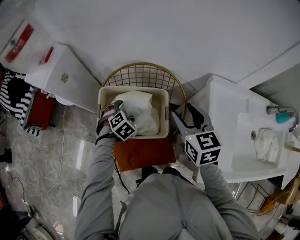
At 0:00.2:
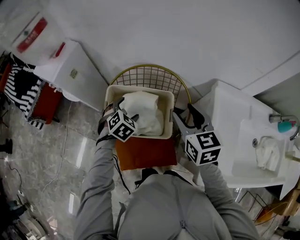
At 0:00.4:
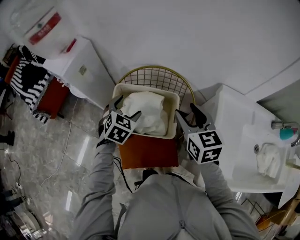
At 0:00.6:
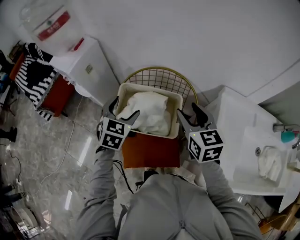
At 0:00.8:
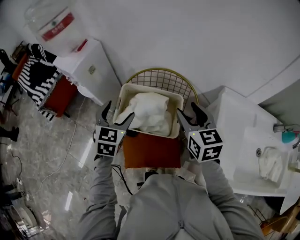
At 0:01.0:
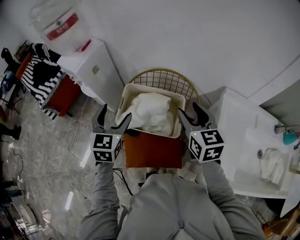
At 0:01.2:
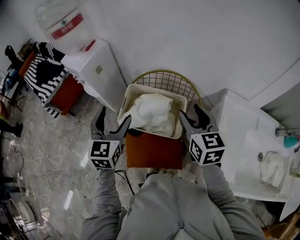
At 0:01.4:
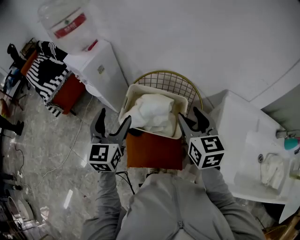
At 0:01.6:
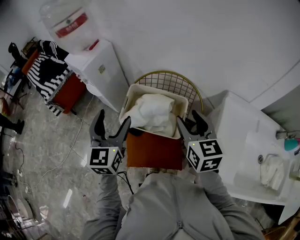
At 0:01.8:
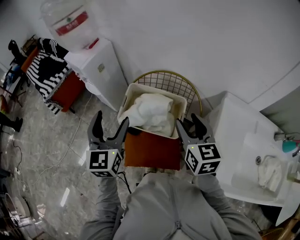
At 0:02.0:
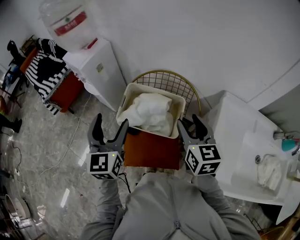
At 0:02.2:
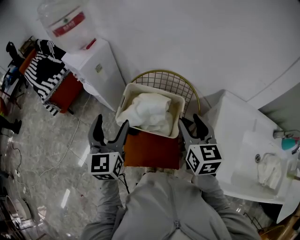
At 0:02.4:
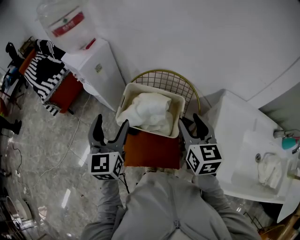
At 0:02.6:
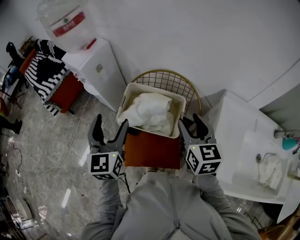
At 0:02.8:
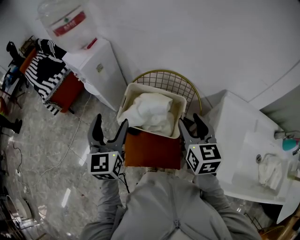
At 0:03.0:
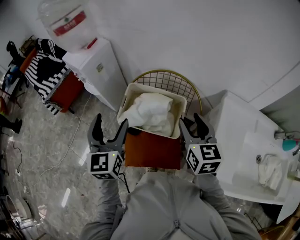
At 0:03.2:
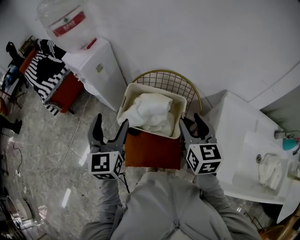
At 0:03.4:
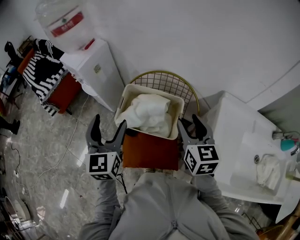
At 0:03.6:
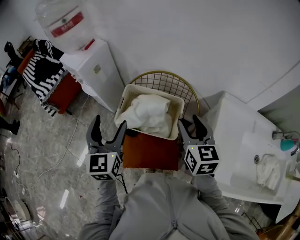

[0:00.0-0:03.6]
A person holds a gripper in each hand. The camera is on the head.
0:00.0 to 0:01.8: The left gripper heads upward, backward and to the left, covering roughly 35 cm, and angles its fingers upward, by roughly 60 degrees, while the right gripper heads backward and to the left, covering roughly 10 cm.
0:01.8 to 0:03.6: The grippers make only small movements.

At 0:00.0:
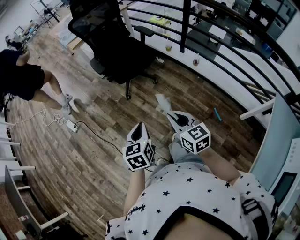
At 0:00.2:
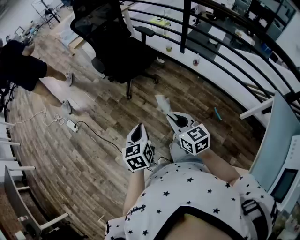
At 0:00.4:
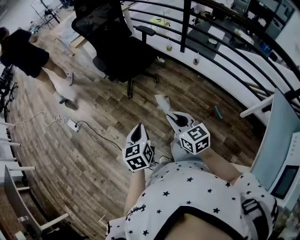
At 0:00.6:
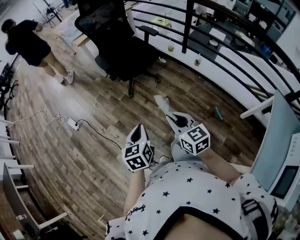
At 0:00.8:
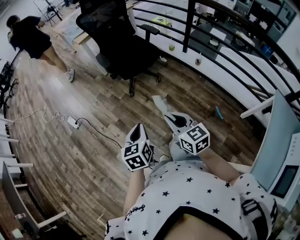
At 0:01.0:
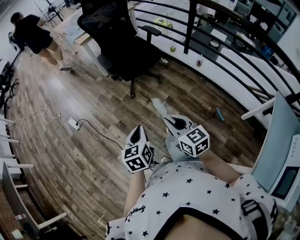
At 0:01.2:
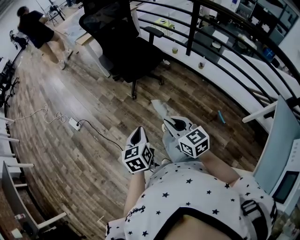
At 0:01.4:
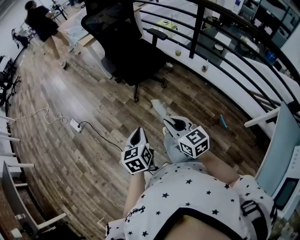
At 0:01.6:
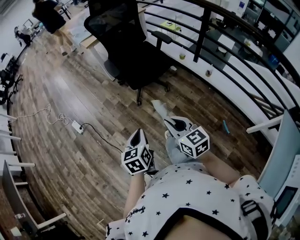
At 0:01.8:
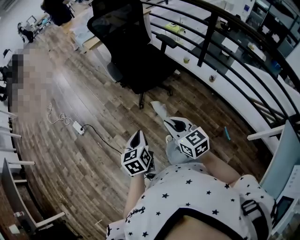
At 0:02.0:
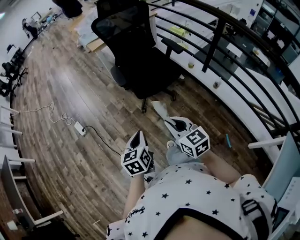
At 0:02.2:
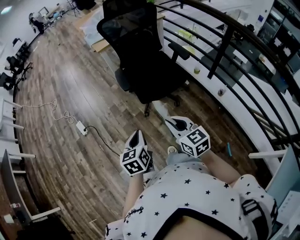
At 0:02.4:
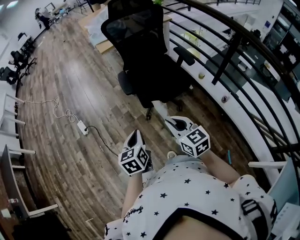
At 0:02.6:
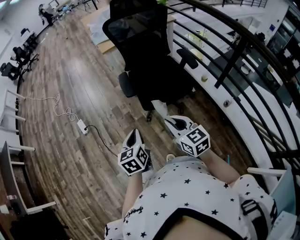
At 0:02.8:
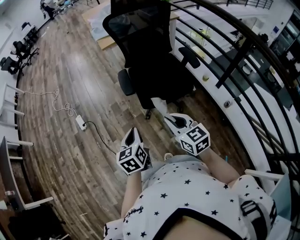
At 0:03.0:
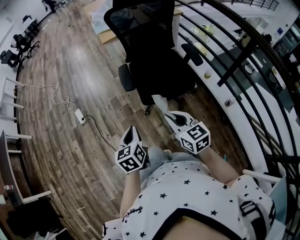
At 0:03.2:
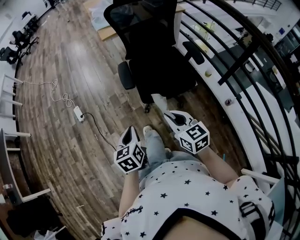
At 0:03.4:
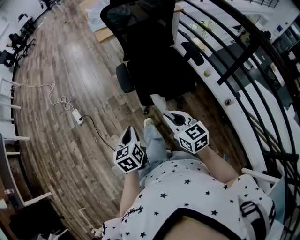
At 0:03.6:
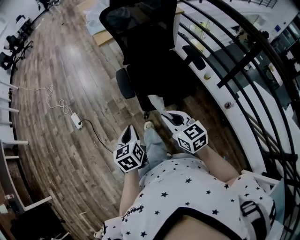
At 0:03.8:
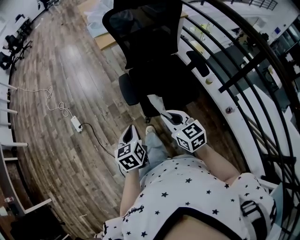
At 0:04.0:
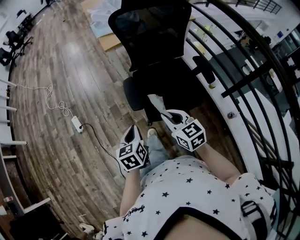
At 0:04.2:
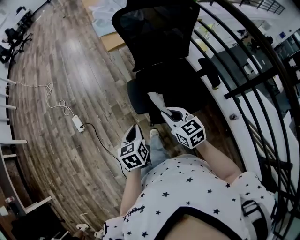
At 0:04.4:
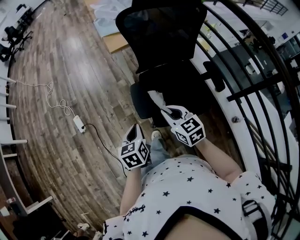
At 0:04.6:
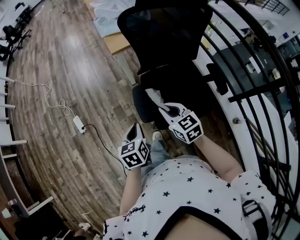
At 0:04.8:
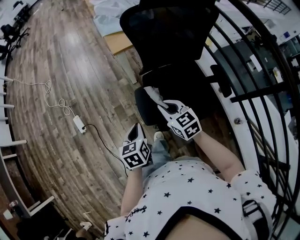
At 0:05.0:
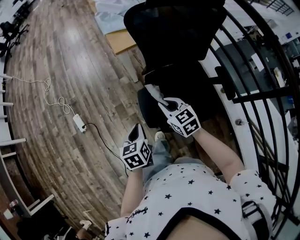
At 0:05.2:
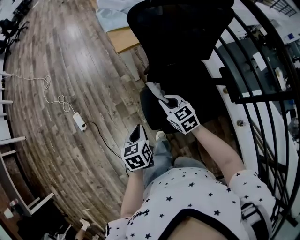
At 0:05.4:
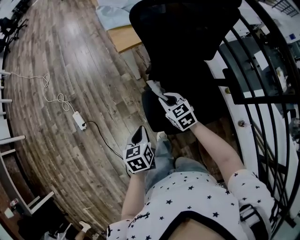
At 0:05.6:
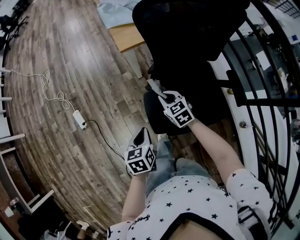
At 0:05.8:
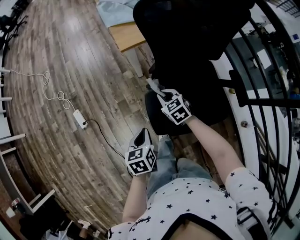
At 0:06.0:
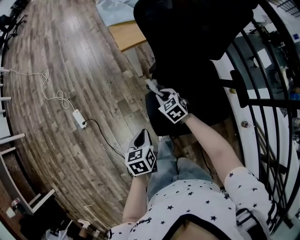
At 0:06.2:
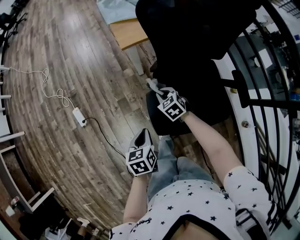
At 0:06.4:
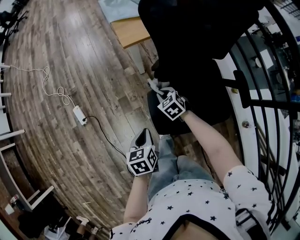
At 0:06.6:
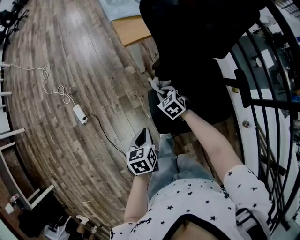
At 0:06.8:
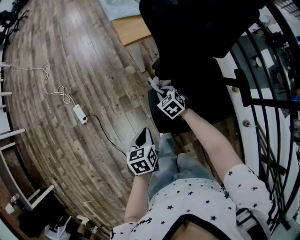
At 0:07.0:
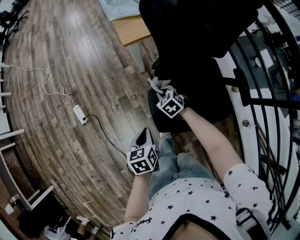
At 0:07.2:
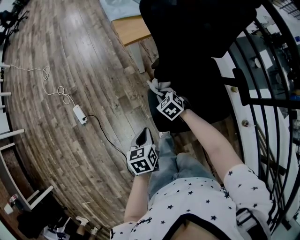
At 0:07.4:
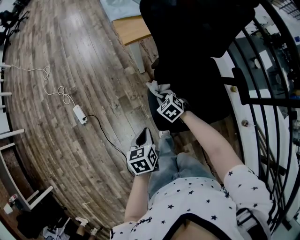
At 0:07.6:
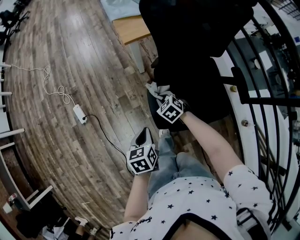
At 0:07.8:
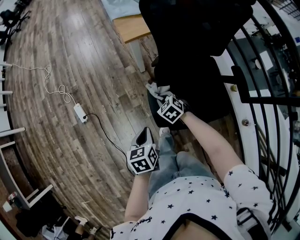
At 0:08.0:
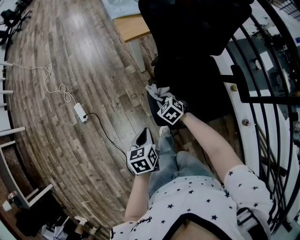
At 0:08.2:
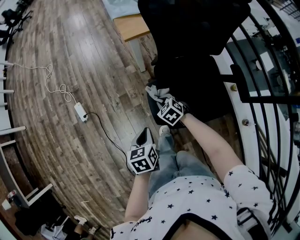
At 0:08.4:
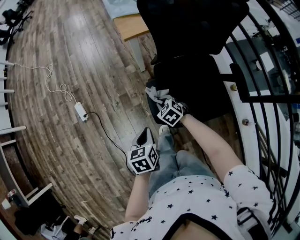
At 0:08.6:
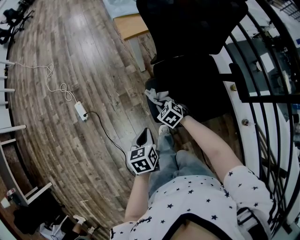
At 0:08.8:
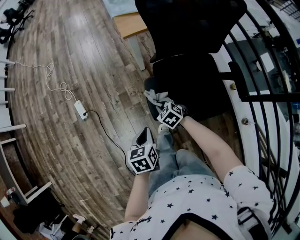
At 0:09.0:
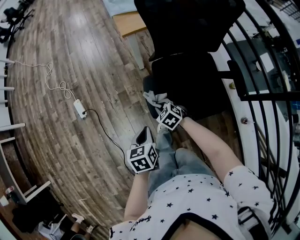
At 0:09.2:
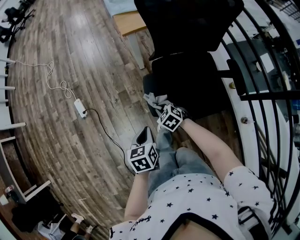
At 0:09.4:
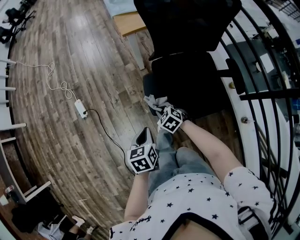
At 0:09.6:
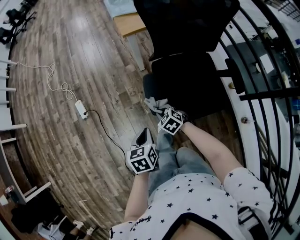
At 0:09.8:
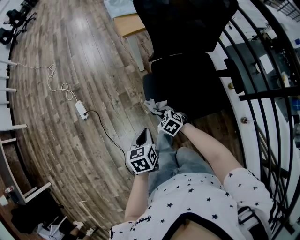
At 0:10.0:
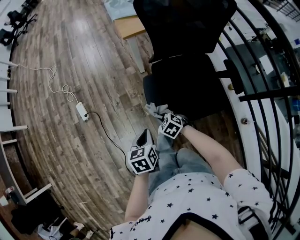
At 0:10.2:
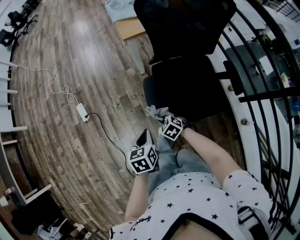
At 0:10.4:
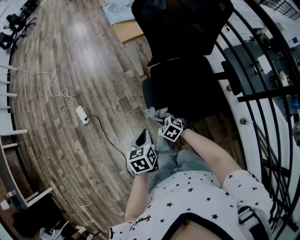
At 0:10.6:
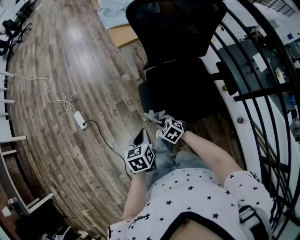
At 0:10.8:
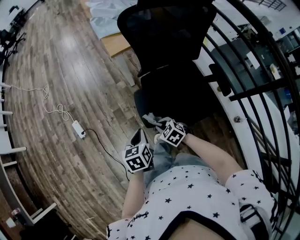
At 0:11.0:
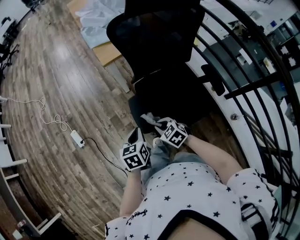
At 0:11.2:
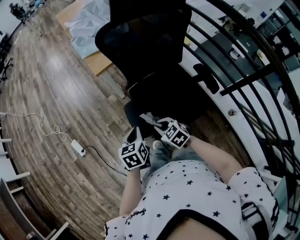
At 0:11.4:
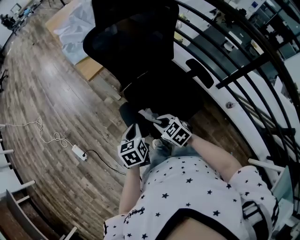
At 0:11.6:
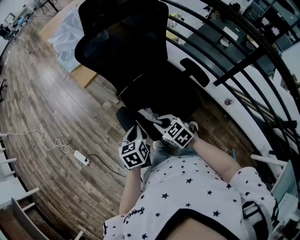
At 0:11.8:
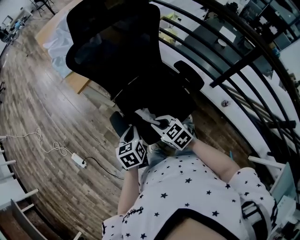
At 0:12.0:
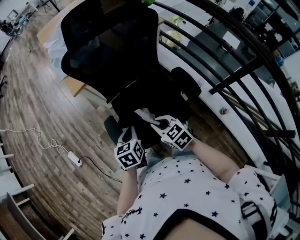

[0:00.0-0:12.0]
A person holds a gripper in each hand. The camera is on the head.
0:00.0 to 0:01.6: Both grippers travel together to the left and forward, some 10 cm.
0:01.6 to 0:03.0: Both grippers travel together forward, about 20 cm. The left gripper swivels roughly 20 degrees.
0:03.0 to 0:04.4: Both grippers travel together forward, about 25 cm.
0:04.4 to 0:06.0: The left gripper moves downward and forward, some 15 cm. Meanwhile the right gripper heads forward and downward, covering some 30 cm, and turns by about 20 degrees.
0:06.0 to 0:07.6: The right gripper changes place by some 5 cm.
0:07.6 to 0:09.0: The left gripper goes some 5 cm backward. The right gripper heads backward, covering roughly 10 cm.
0:09.0 to 0:10.4: The right gripper is displaced backward by about 5 cm.
0:10.4 to 0:12.0: The right gripper is displaced to the right and upward by approximately 30 cm, and swivels some 40 degrees. The left gripper is displaced to the right and forward by approximately 25 cm.

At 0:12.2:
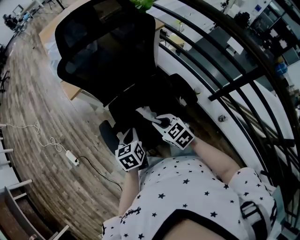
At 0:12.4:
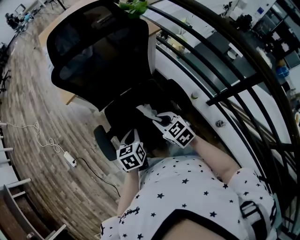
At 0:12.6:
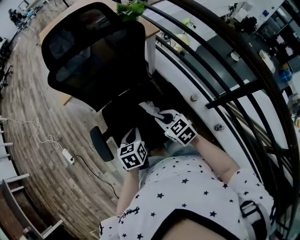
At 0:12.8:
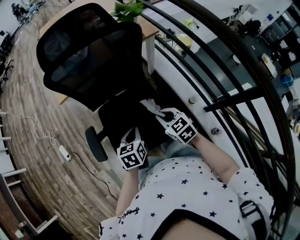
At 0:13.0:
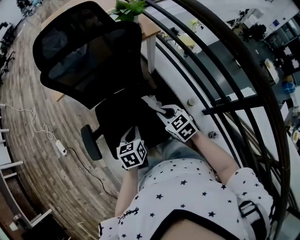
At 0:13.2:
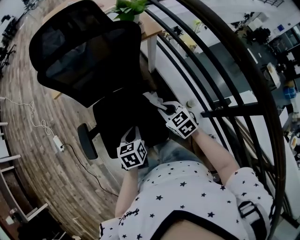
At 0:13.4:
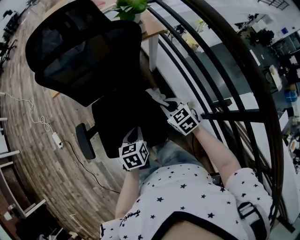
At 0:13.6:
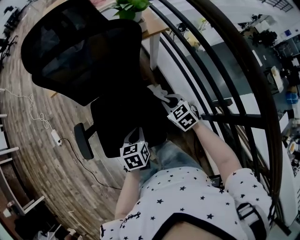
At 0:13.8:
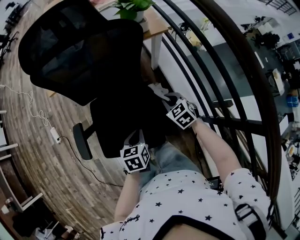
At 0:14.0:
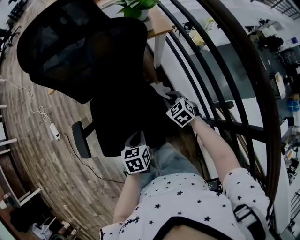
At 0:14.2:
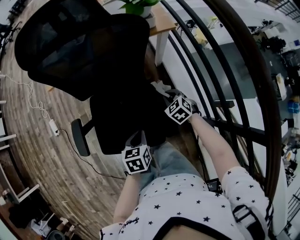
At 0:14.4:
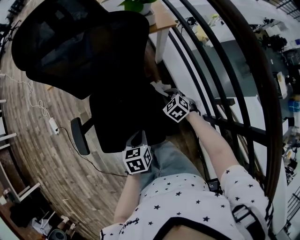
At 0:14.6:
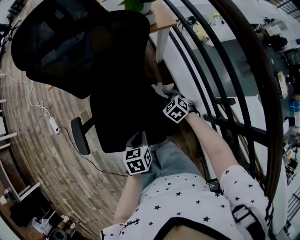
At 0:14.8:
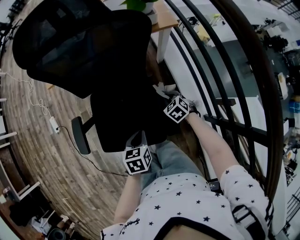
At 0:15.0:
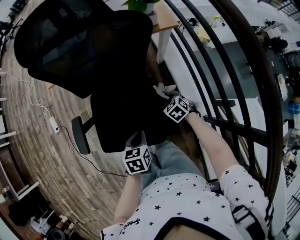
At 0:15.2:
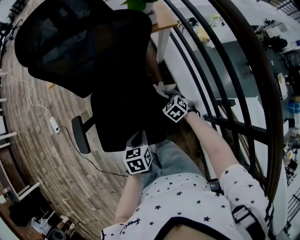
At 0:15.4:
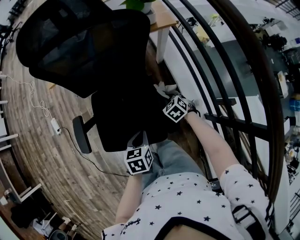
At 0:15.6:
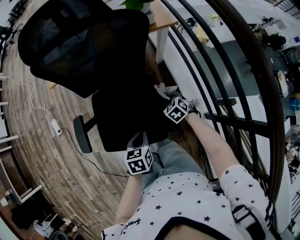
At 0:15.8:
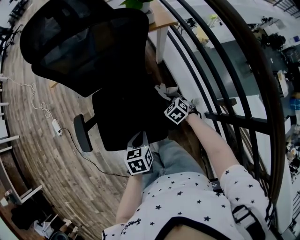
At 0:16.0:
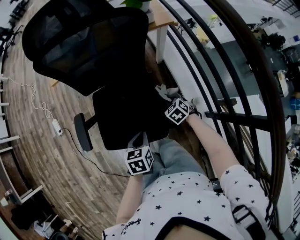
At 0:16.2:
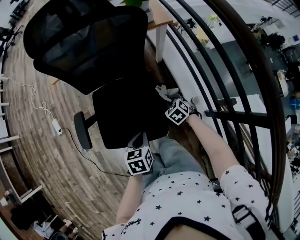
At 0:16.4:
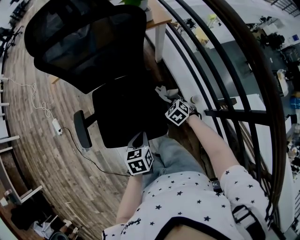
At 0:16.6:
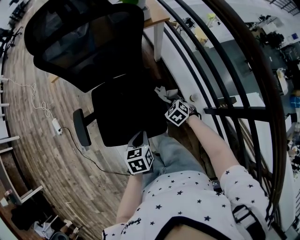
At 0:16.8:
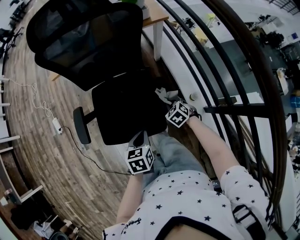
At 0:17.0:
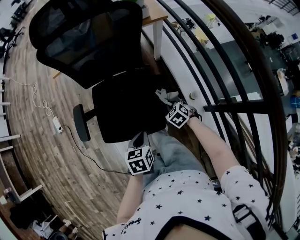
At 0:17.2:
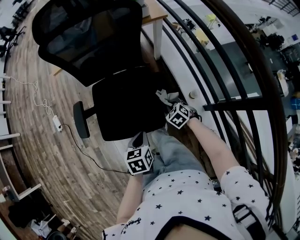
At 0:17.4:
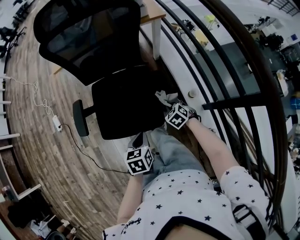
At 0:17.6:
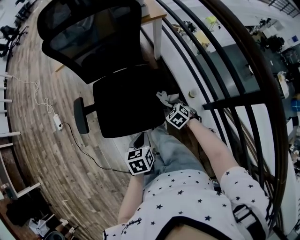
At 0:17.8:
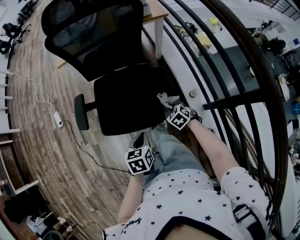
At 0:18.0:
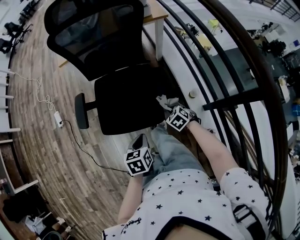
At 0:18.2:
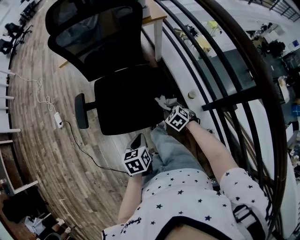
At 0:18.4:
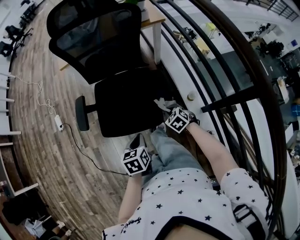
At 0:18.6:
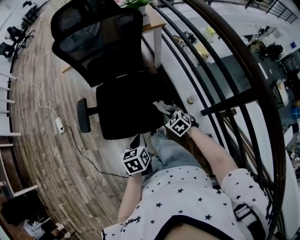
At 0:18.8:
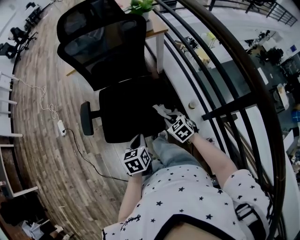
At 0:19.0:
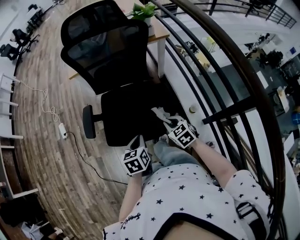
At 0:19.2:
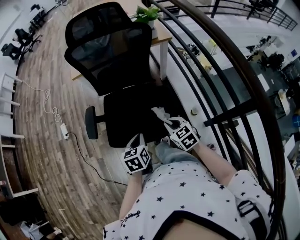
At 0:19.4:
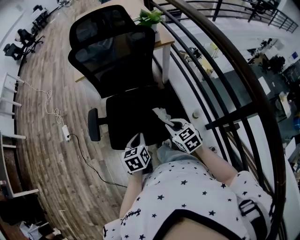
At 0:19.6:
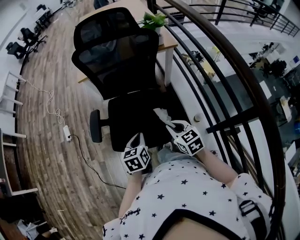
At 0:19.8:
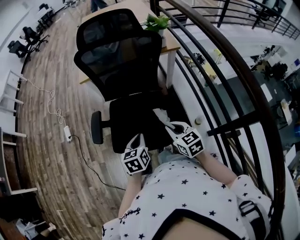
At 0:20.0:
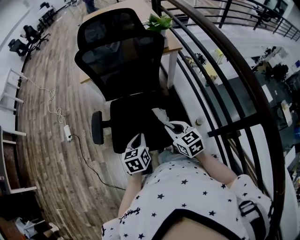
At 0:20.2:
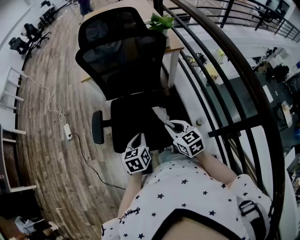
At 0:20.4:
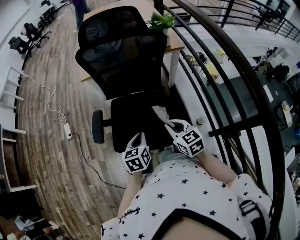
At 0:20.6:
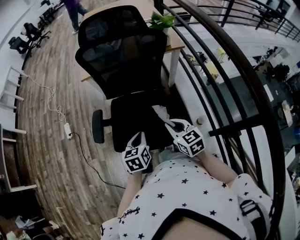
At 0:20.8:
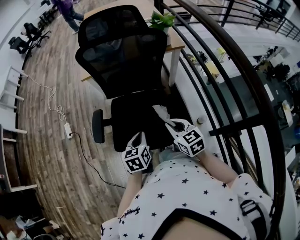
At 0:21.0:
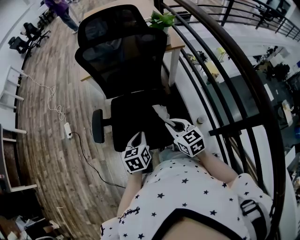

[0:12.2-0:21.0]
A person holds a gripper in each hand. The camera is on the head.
0:12.2 to 0:13.6: The right gripper shifts some 30 cm to the right and forward. The left gripper travels to the right by some 20 cm.
0:13.6 to 0:15.2: The right gripper heads downward, covering some 10 cm.
0:15.2 to 0:16.6: Both grippers travel together backward, roughly 5 cm.
0:16.6 to 0:18.0: Both grippers travel together backward, about 10 cm.
0:18.0 to 0:19.6: The left gripper heads forward and upward, covering approximately 10 cm. Meanwhile the right gripper moves upward, some 20 cm, and changes its angle by roughly 30 degrees.
0:19.6 to 0:21.0: The grippers move only a little.
